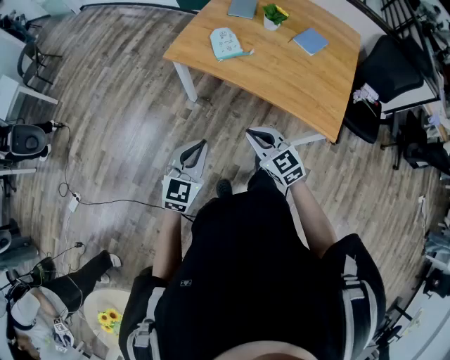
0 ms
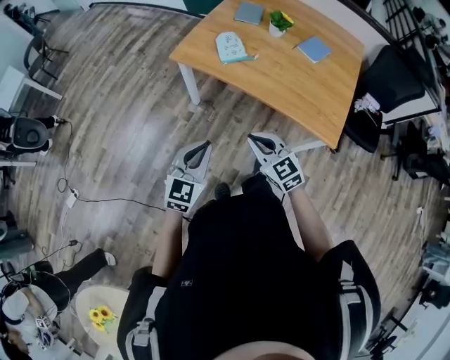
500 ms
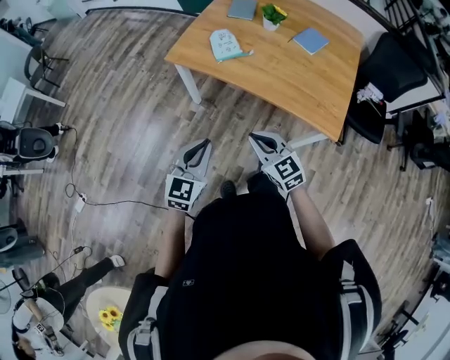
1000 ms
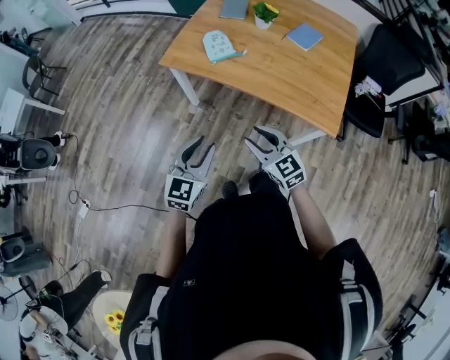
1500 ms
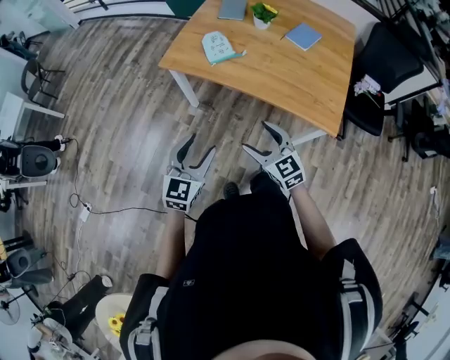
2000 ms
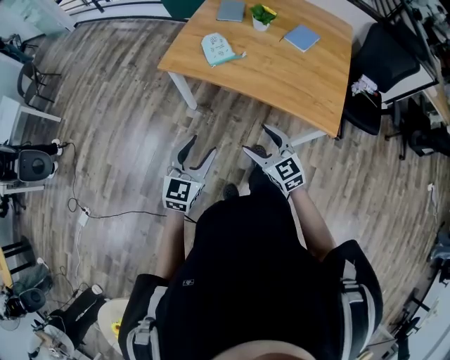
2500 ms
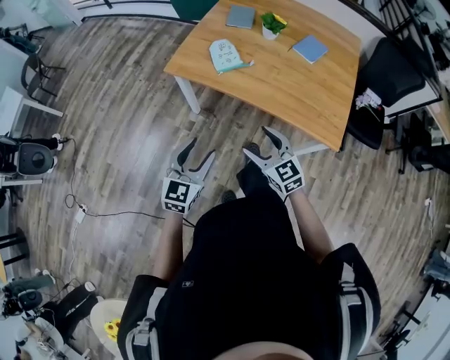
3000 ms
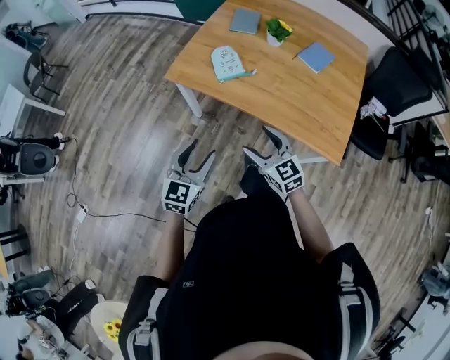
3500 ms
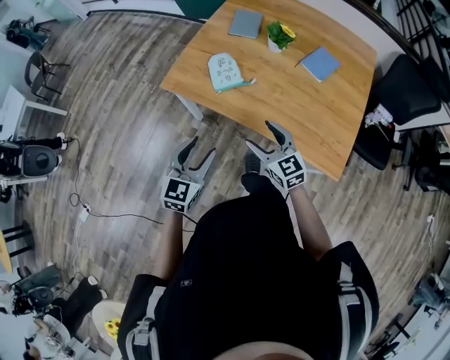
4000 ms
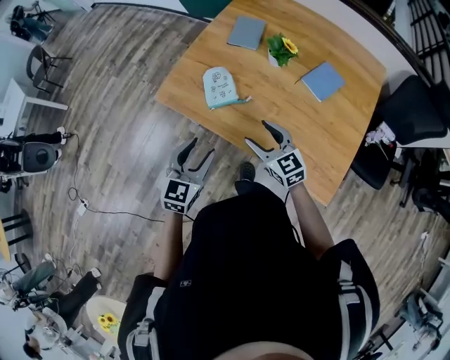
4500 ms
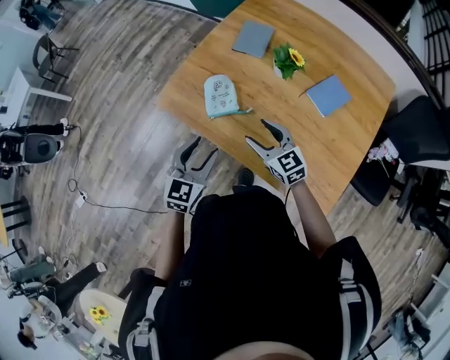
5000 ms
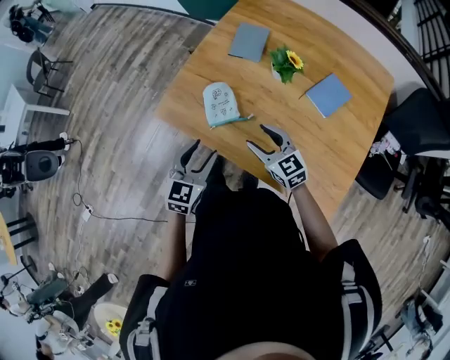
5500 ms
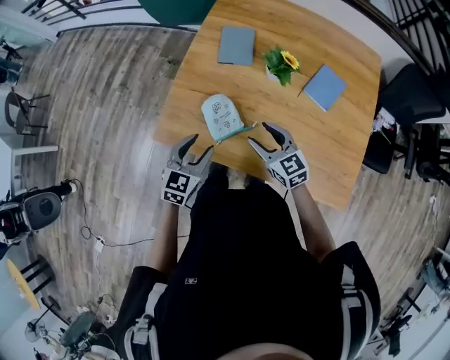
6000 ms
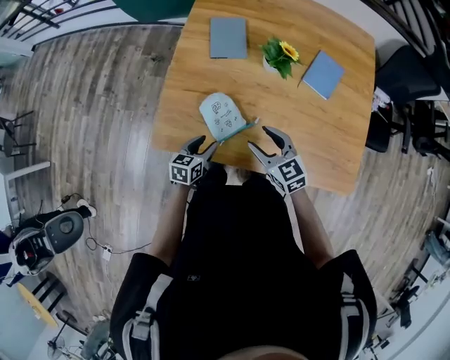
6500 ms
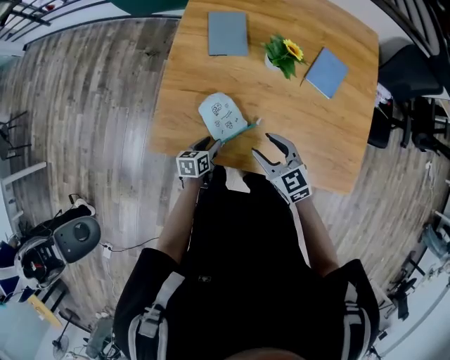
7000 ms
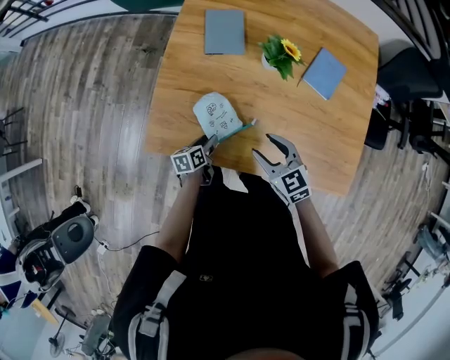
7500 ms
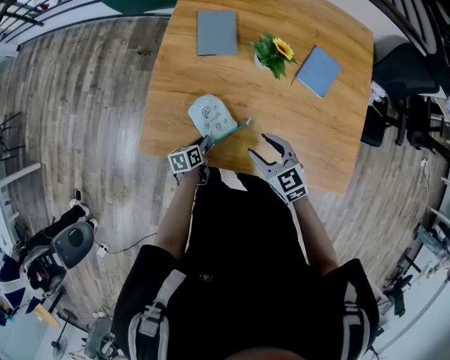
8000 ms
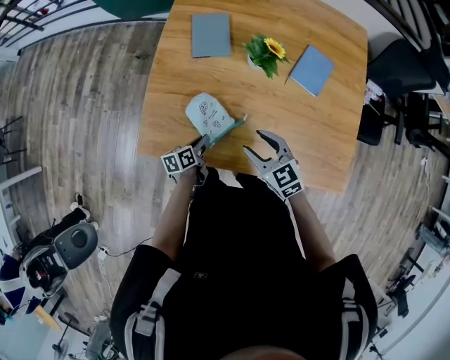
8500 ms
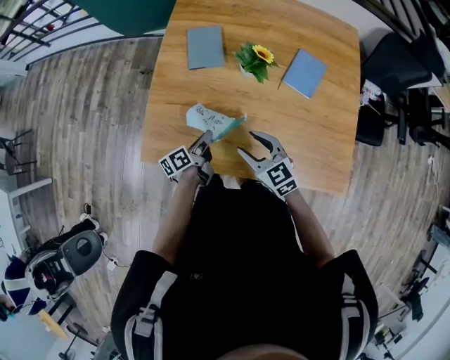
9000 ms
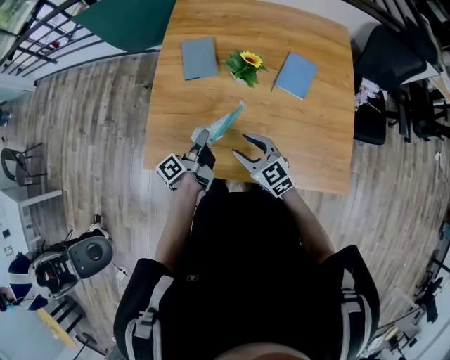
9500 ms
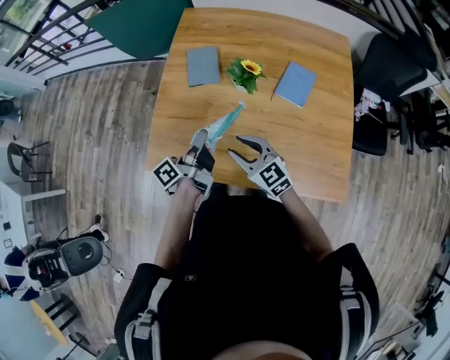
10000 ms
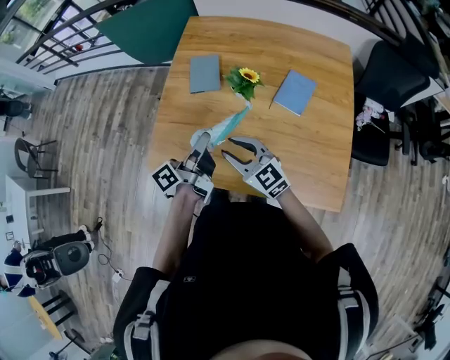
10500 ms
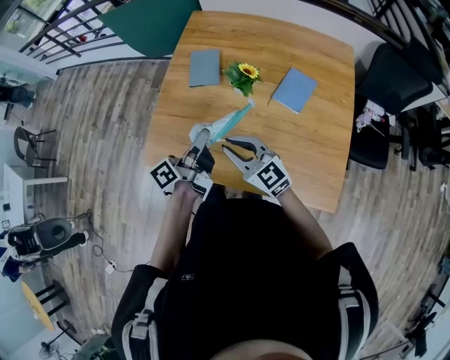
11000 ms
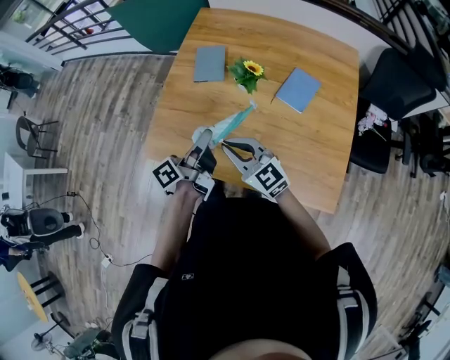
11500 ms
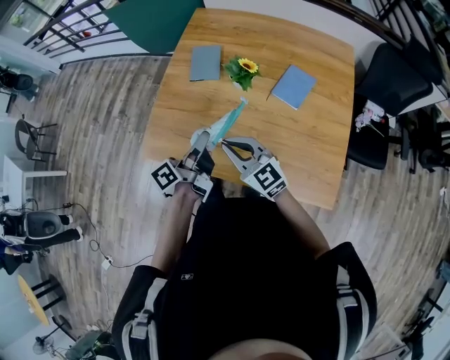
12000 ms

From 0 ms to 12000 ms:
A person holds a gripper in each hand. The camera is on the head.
From 0 ms to 2000 ms: The left gripper opens up; the right gripper opens.
From 2000 ms to 4000 ms: Both grippers move forward, roughly 20 cm.
From 4000 ms to 6000 ms: Both grippers travel together forward, some 25 cm.
From 6000 ms to 8000 ms: The left gripper is displaced downward by some 25 cm, rolls counterclockwise, seen from behind, by some 50 degrees, and closes up.
From 8000 ms to 10000 ms: The right gripper heads upward, covering approximately 10 cm, while the left gripper is displaced upward by some 30 cm, and angles its fingers upward, by roughly 50 degrees.
From 10000 ms to 12000 ms: The right gripper moves approximately 5 cm, and closes its fingers. Meanwhile the left gripper travels backward by roughly 5 cm.

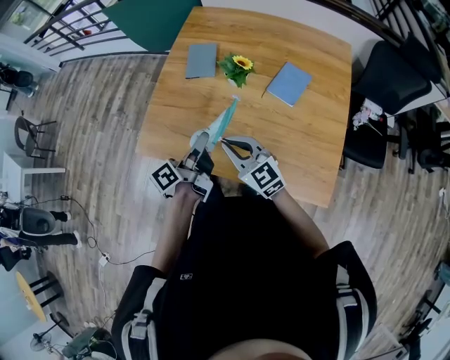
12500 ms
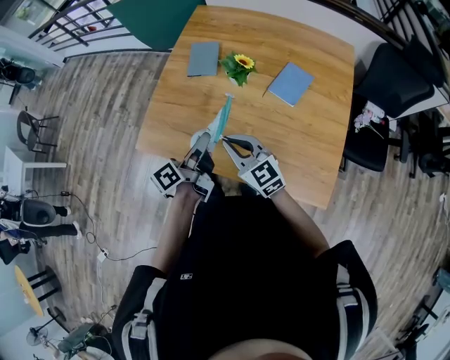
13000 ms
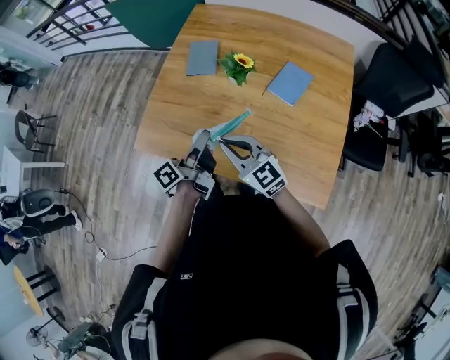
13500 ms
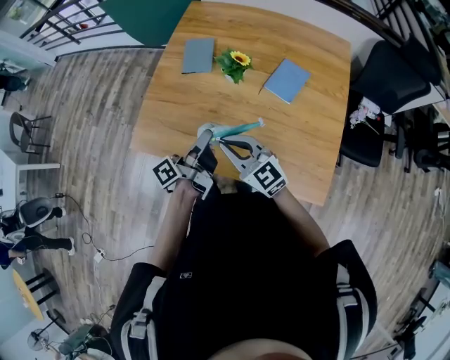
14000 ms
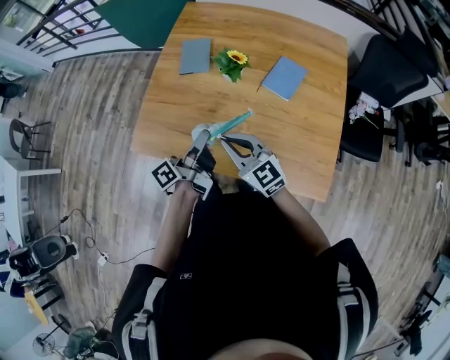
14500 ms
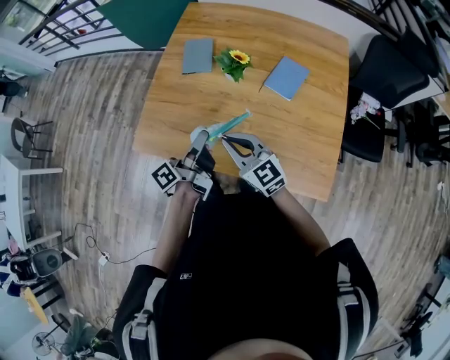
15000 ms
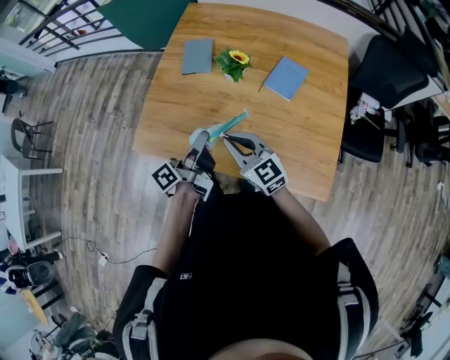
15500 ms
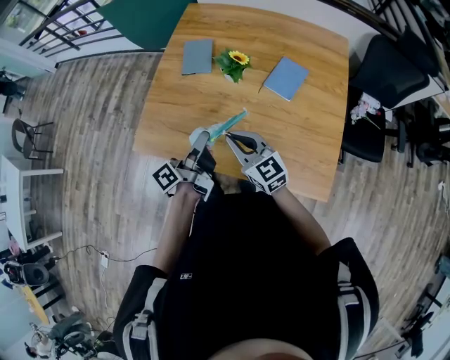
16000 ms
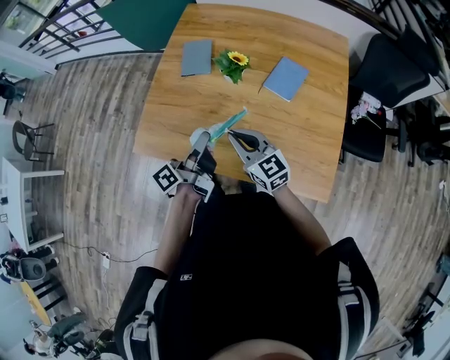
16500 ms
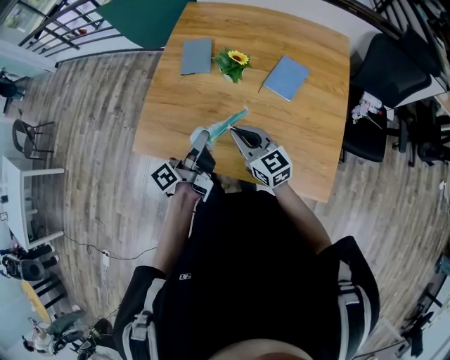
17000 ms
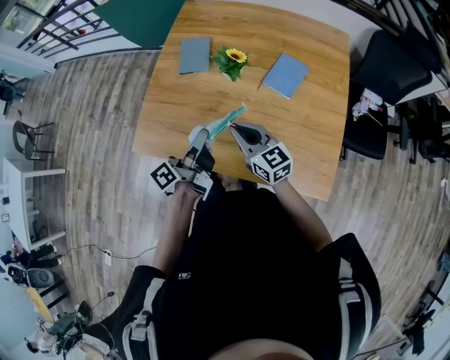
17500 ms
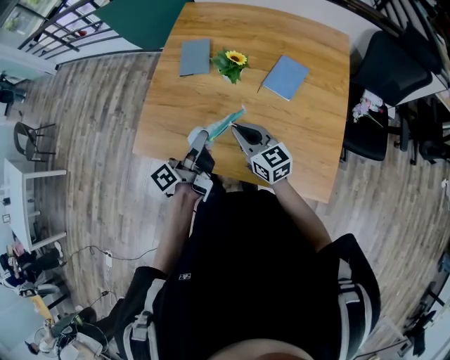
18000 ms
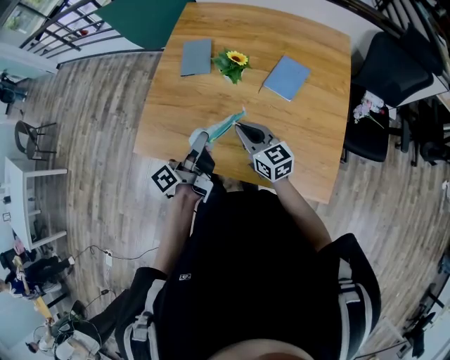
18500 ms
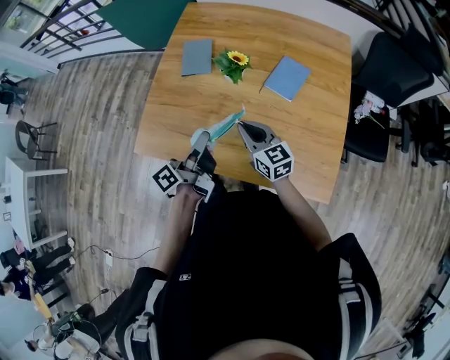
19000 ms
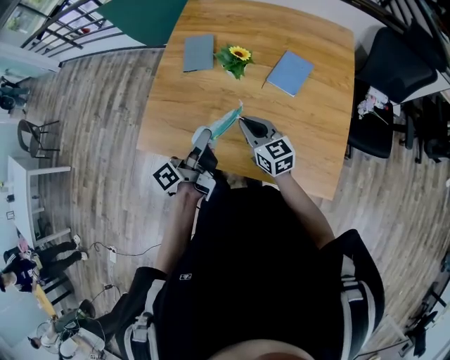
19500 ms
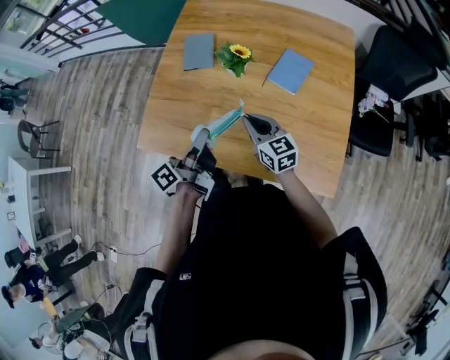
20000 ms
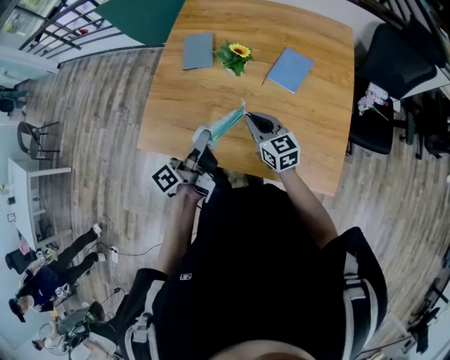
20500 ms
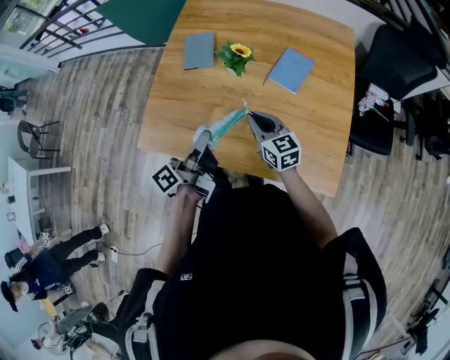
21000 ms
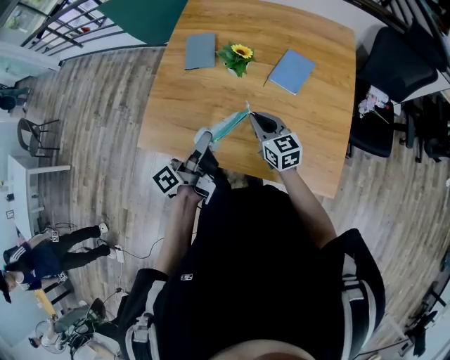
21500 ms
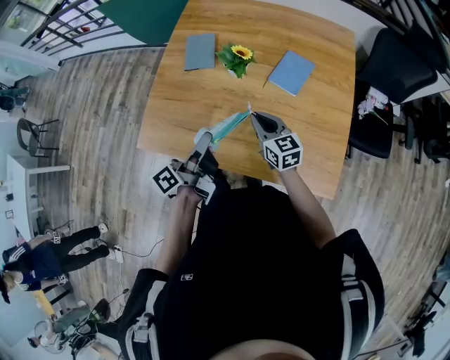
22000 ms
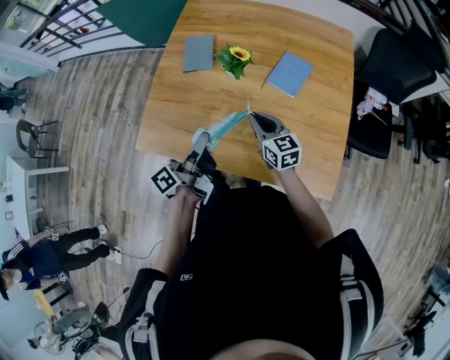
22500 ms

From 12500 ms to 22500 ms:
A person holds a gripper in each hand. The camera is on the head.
From 12500 ms to 16500 ms: The grippers stay close to where they were, moving slightly.
From 16500 ms to 18500 ms: The right gripper ends up roughly 5 cm from where it was.
From 18500 ms to 22500 ms: There are only small adjustments of the grippers.

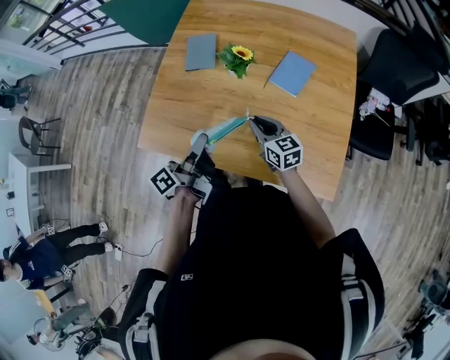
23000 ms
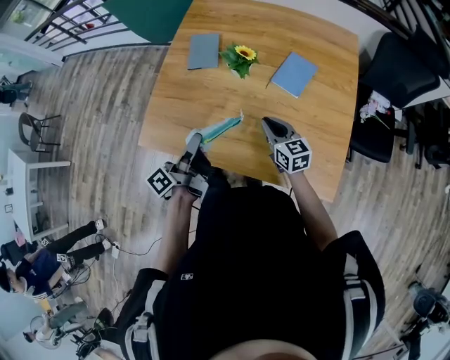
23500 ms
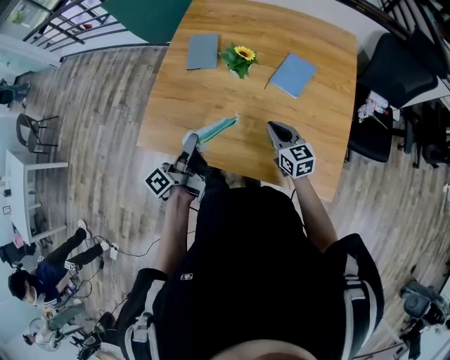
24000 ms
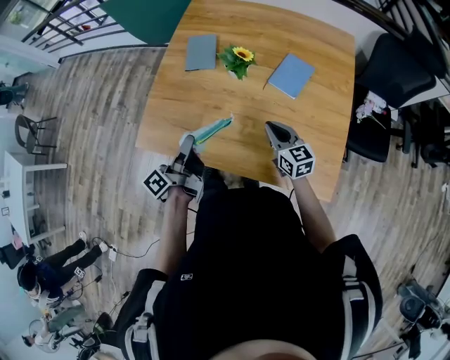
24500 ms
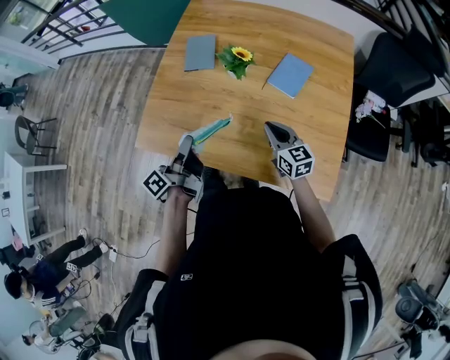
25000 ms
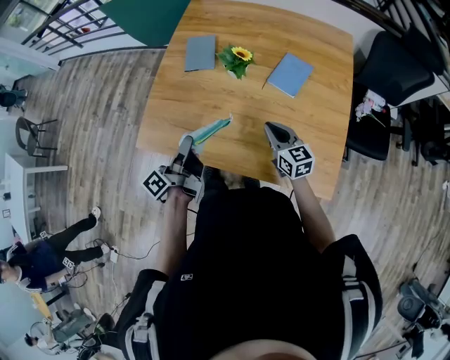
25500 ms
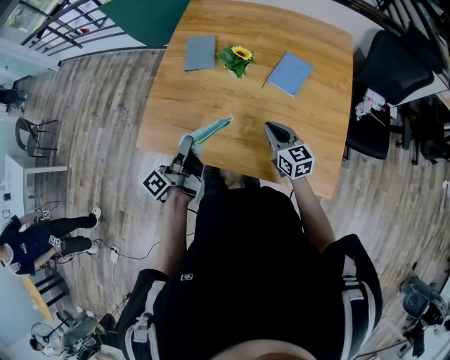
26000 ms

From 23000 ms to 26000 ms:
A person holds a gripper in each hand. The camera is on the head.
From 23000 ms to 24500 ms: The left gripper travels to the left by about 5 cm.
From 24500 ms to 26000 ms: Neither gripper changes place.

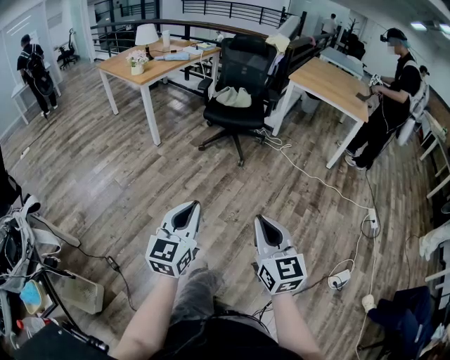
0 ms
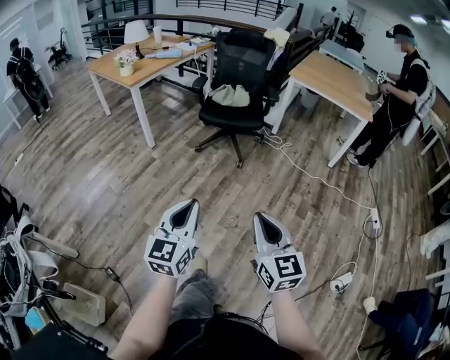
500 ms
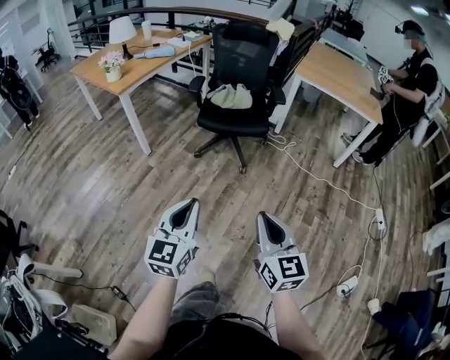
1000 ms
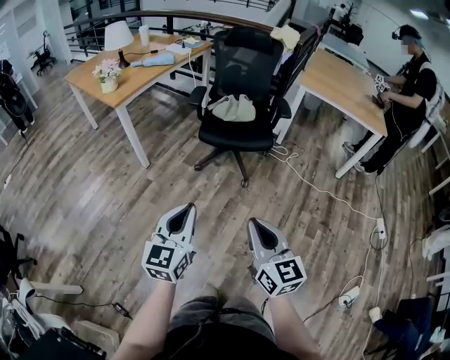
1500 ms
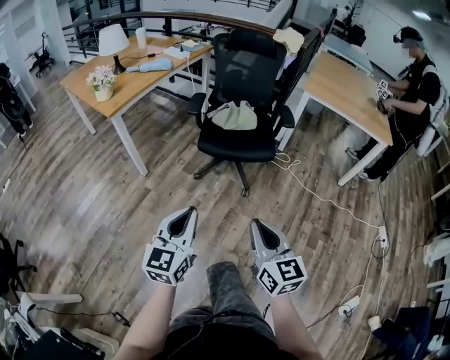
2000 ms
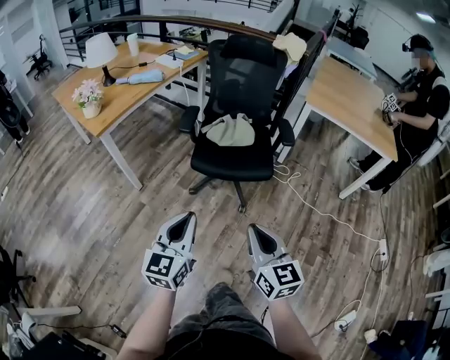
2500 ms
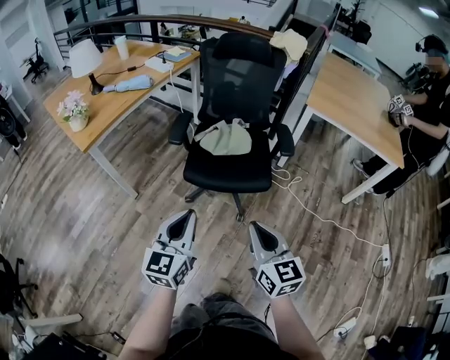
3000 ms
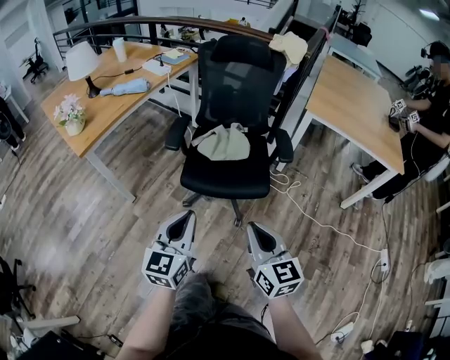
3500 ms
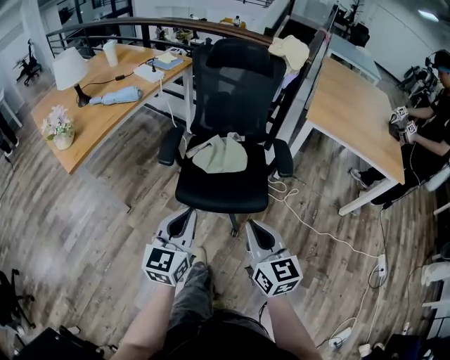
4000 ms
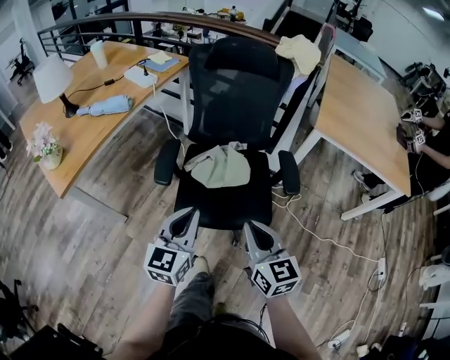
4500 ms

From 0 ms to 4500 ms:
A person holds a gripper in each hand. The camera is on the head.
From 0 ms to 2000 ms: Both grippers are carried forward, roughly 40 cm.
From 2000 ms to 4500 ms: The pair of grippers is taken forward, some 40 cm.
